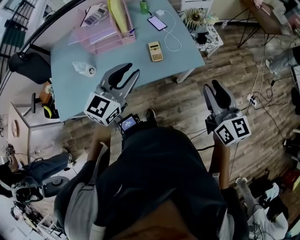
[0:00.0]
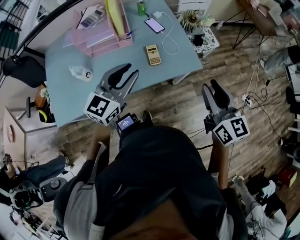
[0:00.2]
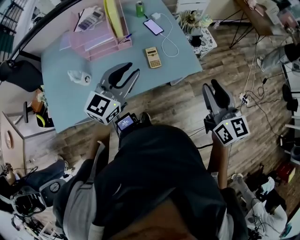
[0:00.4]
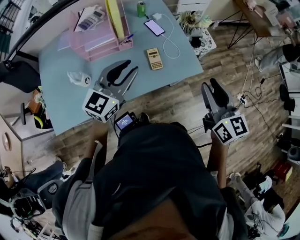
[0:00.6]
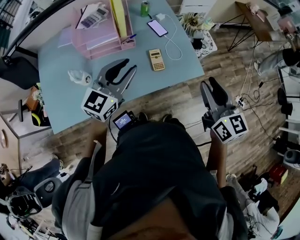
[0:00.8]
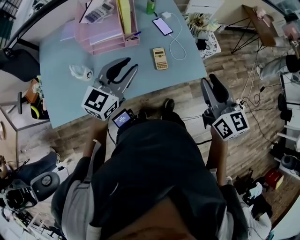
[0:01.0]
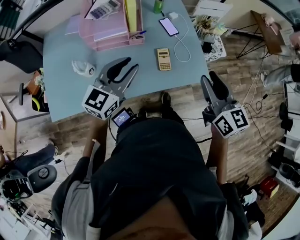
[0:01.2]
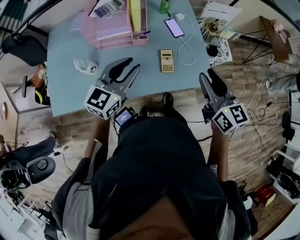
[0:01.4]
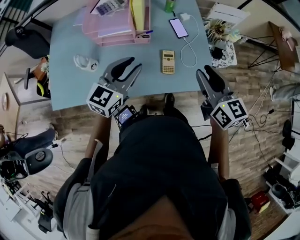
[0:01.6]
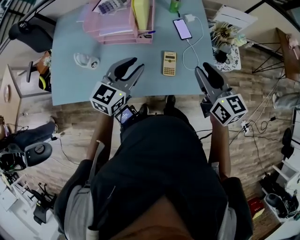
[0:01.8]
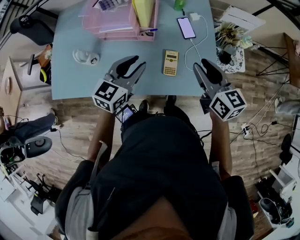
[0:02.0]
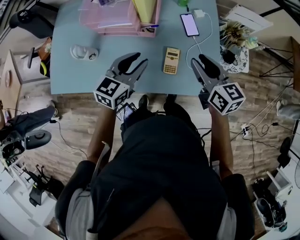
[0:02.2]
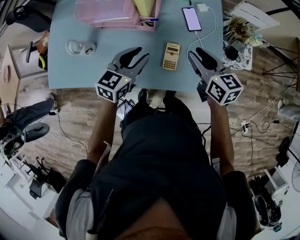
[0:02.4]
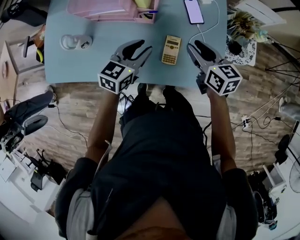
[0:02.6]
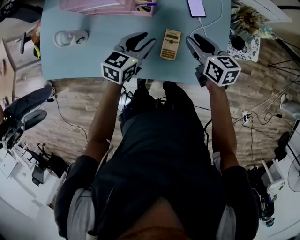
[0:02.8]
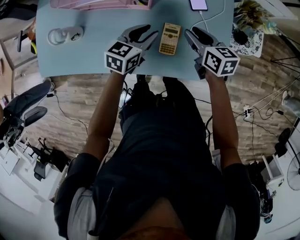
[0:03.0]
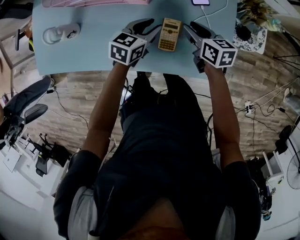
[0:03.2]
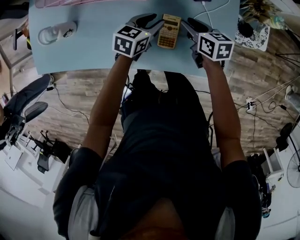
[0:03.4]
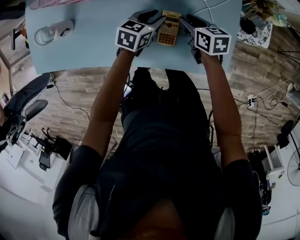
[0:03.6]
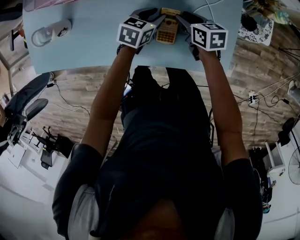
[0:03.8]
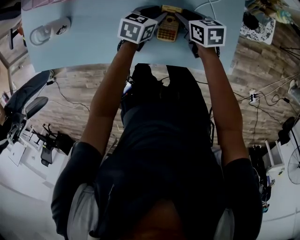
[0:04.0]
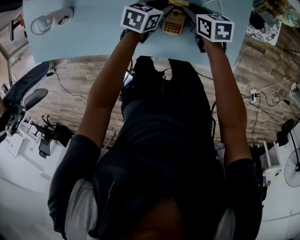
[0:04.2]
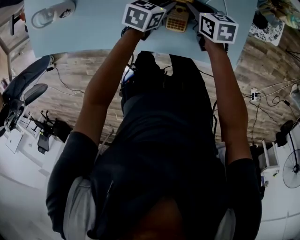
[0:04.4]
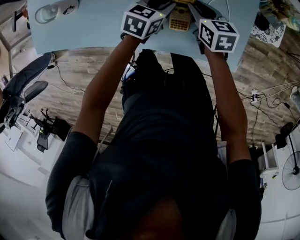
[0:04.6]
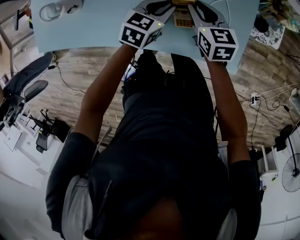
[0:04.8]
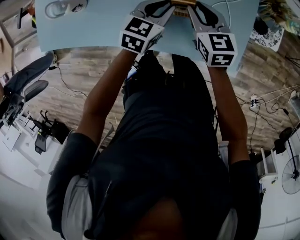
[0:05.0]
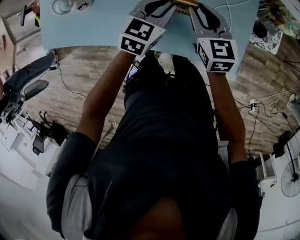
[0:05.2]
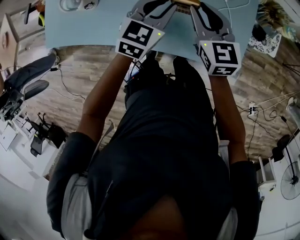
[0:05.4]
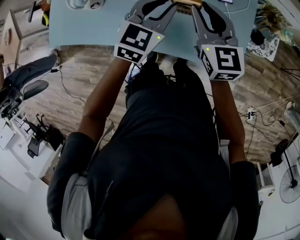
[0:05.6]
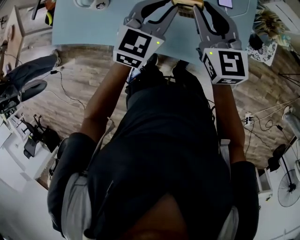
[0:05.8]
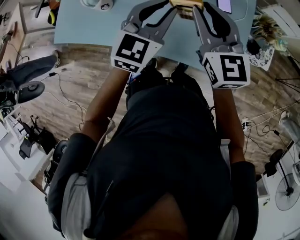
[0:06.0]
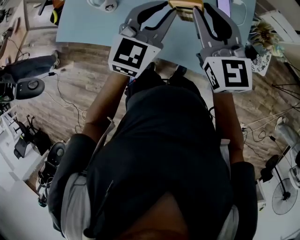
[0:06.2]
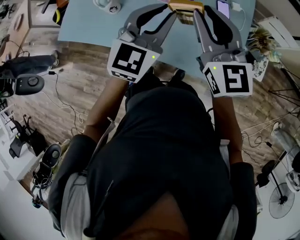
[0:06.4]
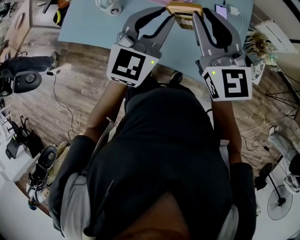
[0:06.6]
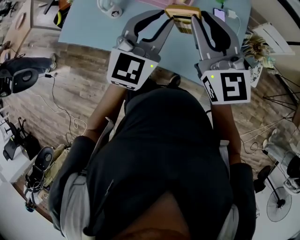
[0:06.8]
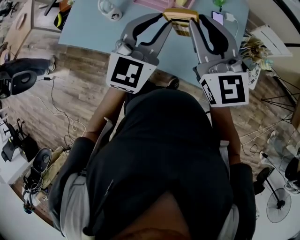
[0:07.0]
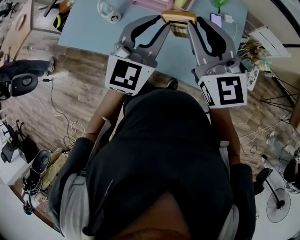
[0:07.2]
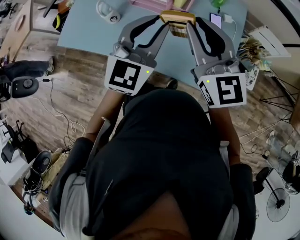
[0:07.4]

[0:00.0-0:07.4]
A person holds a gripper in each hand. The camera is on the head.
0:00.0 to 0:01.4: The two grippers go roughly 15 cm forward and to the left.
0:01.4 to 0:03.0: Both grippers travel together downward and forward, roughly 30 cm. The right gripper changes its angle by about 30 degrees. Meanwhile the left gripper swivels roughly 30 degrees.
0:03.0 to 0:04.4: Both grippers move downward, approximately 10 cm.
0:04.4 to 0:06.0: Both grippers travel together upward, roughly 35 cm. The right gripper tips its fingers upward by some 40 degrees. The left gripper angles its fingers upward, by some 30 degrees.
0:06.0 to 0:07.4: Both grippers travel together upward, about 10 cm.

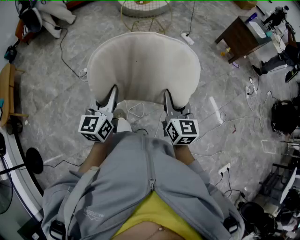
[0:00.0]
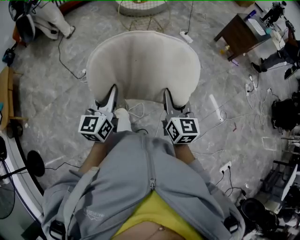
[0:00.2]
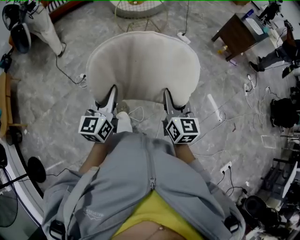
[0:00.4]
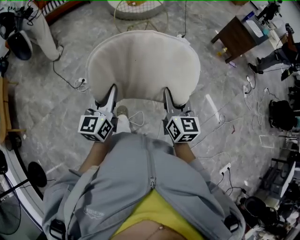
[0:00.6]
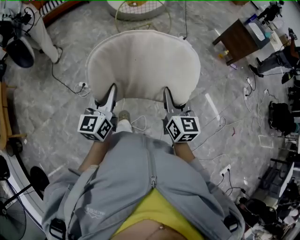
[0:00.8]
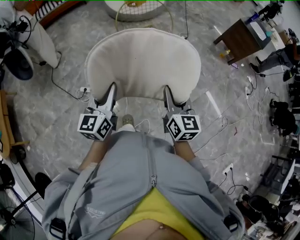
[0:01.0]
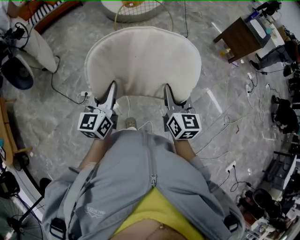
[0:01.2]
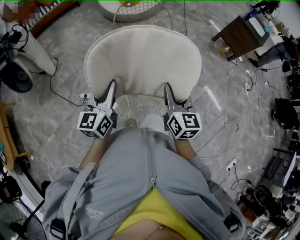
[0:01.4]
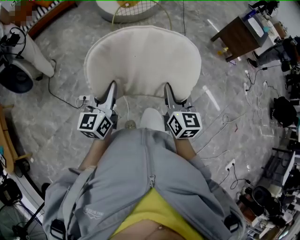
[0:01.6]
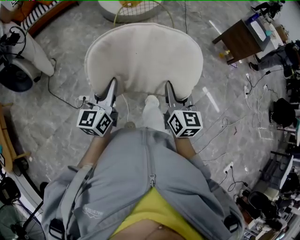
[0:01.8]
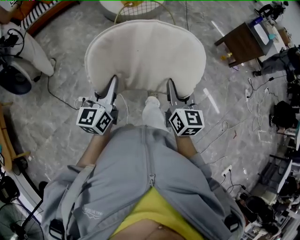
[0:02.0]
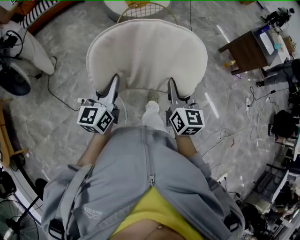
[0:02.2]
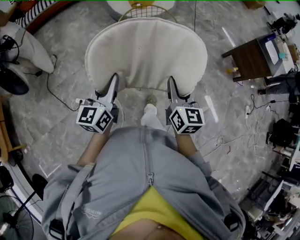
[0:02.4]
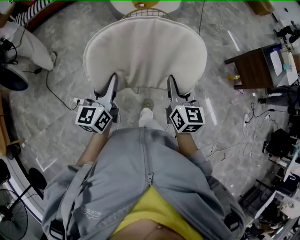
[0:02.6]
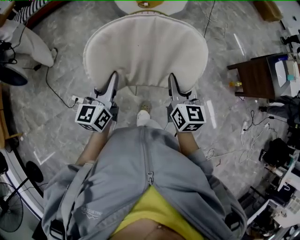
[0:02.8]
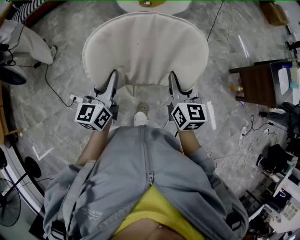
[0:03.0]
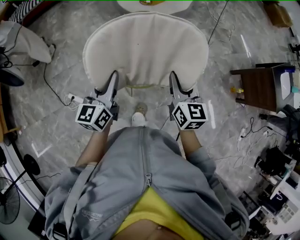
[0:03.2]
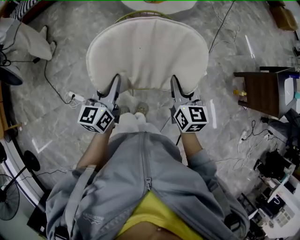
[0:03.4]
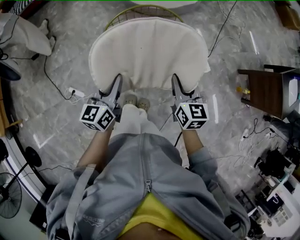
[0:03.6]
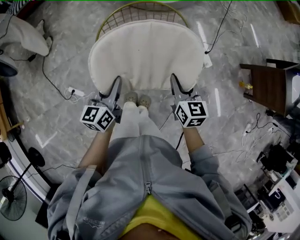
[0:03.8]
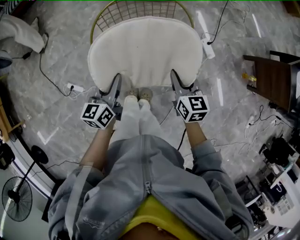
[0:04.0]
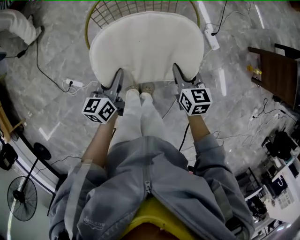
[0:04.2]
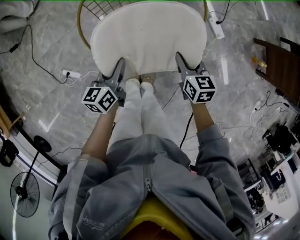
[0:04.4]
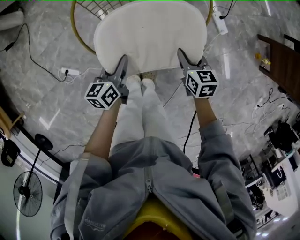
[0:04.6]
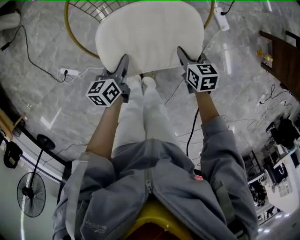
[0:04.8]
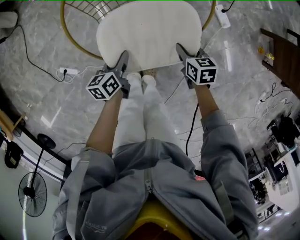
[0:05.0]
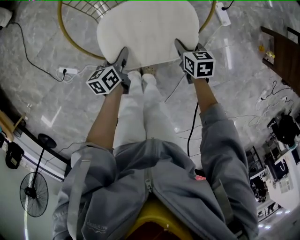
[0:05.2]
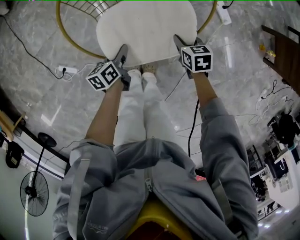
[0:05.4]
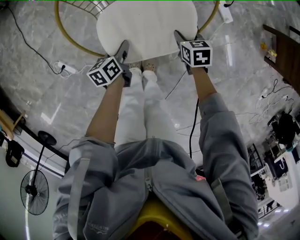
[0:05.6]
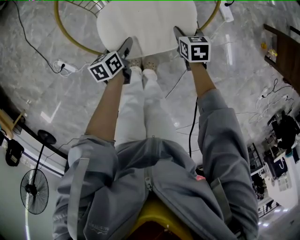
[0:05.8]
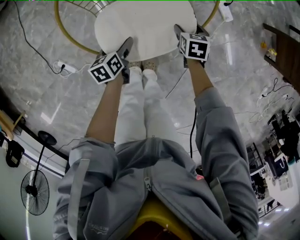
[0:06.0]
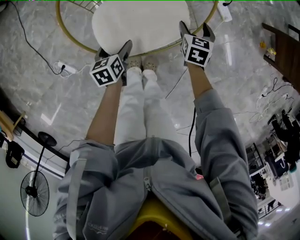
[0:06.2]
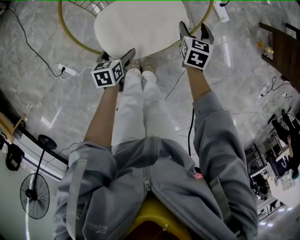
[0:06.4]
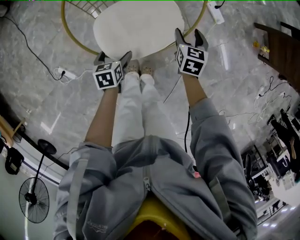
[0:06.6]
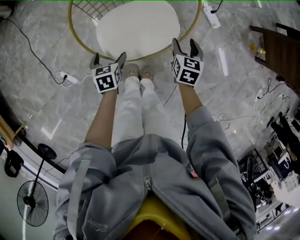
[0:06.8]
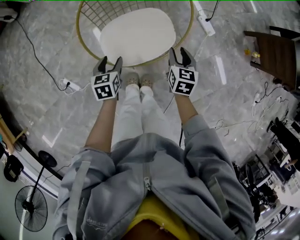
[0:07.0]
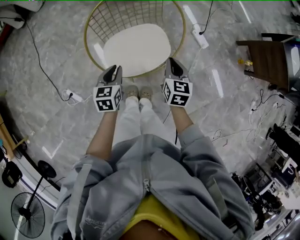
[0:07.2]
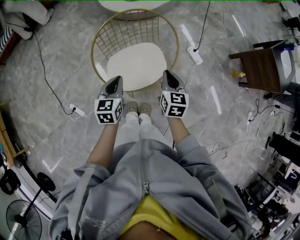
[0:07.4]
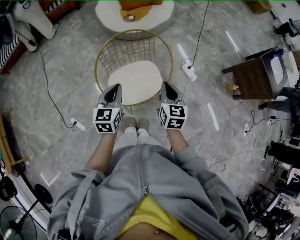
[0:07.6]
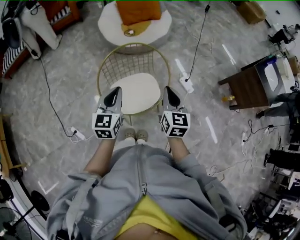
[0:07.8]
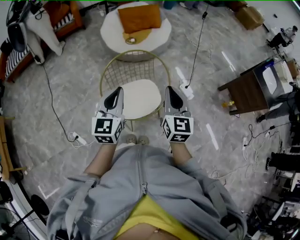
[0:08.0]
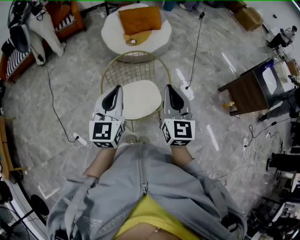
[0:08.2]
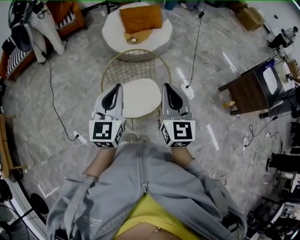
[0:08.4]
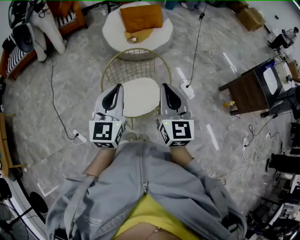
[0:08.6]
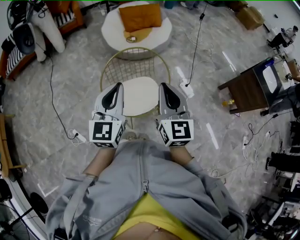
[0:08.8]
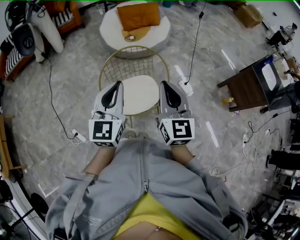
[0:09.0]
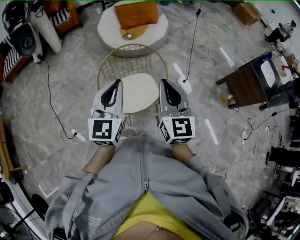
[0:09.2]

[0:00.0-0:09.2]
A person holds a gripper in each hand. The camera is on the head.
0:00.0 to 0:01.6: Both grippers travel together forward and to the left, approximately 40 cm.
0:01.6 to 0:03.0: The two grippers travel together, forward, roughly 50 cm.
0:03.0 to 0:04.6: Both grippers move downward, approximately 40 cm. The right gripper changes its angle by roughly 30 degrees, while the left gripper rotates roughly 30 degrees.
0:04.6 to 0:06.2: The right gripper travels downward, forward and to the right by approximately 15 cm, swivels about 30 degrees, and opens its fingers. The left gripper shifts some 10 cm downward, rotates some 20 degrees, and opens.
0:06.2 to 0:07.6: Both grippers move upward, about 40 cm. The right gripper swivels about 30 degrees, and closes its fingers, while the left gripper tips its fingers upward by about 30 degrees, and closes its fingers.
0:07.6 to 0:09.2: Both grippers travel together upward, about 25 cm. The right gripper swivels approximately 30 degrees, while the left gripper changes its angle by approximately 20 degrees.

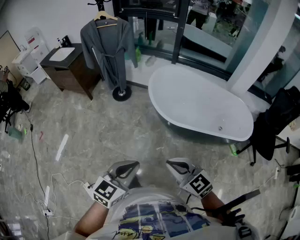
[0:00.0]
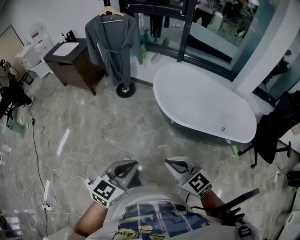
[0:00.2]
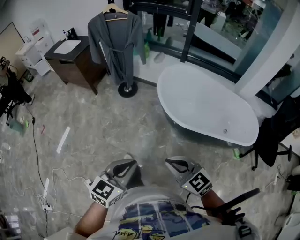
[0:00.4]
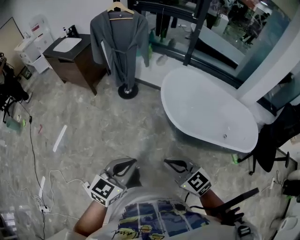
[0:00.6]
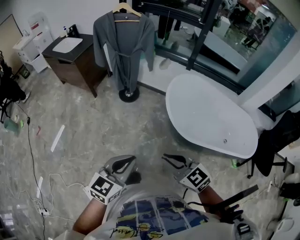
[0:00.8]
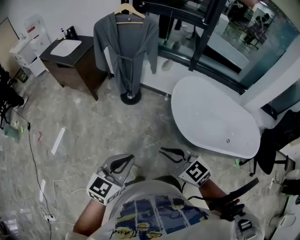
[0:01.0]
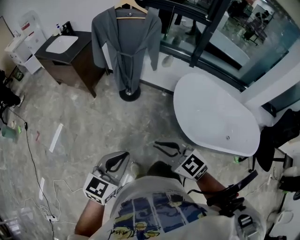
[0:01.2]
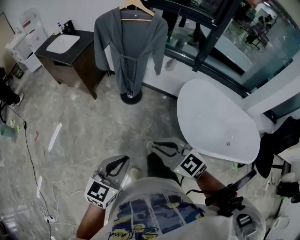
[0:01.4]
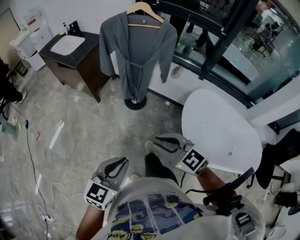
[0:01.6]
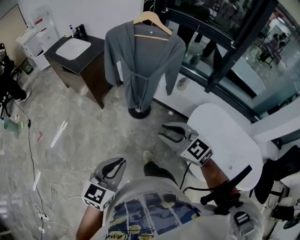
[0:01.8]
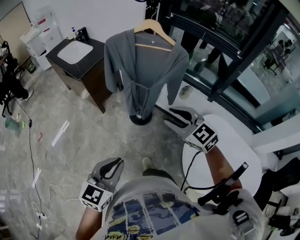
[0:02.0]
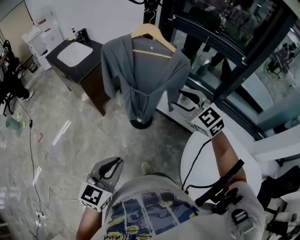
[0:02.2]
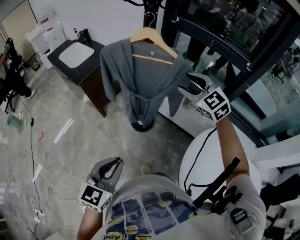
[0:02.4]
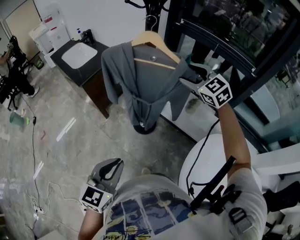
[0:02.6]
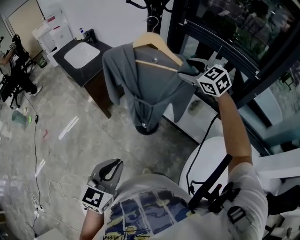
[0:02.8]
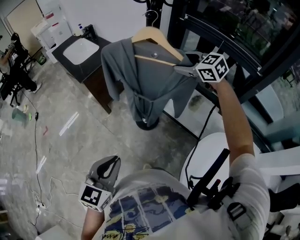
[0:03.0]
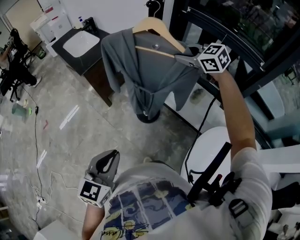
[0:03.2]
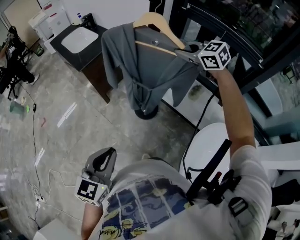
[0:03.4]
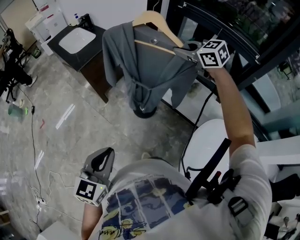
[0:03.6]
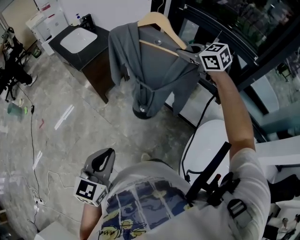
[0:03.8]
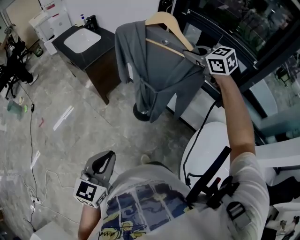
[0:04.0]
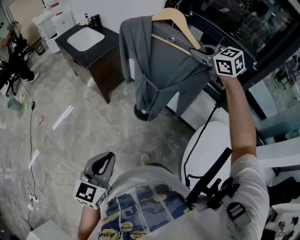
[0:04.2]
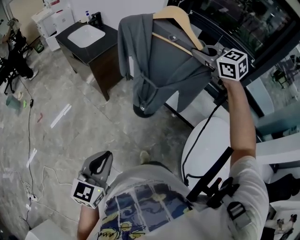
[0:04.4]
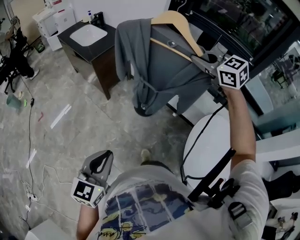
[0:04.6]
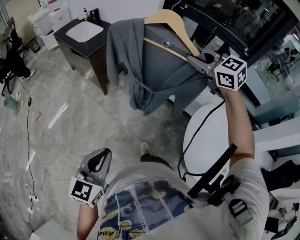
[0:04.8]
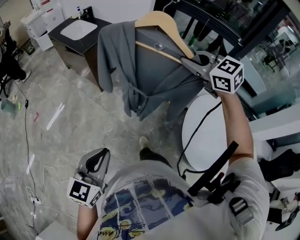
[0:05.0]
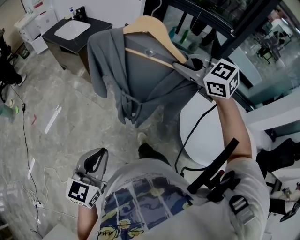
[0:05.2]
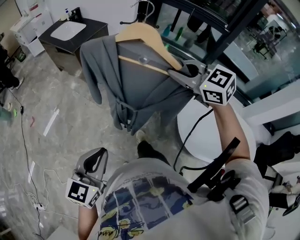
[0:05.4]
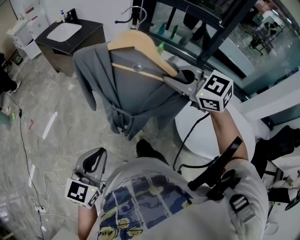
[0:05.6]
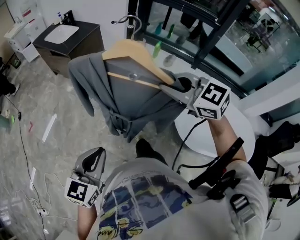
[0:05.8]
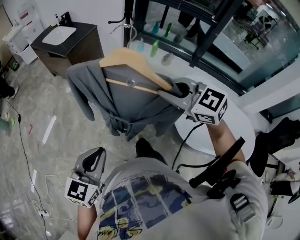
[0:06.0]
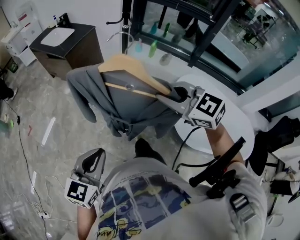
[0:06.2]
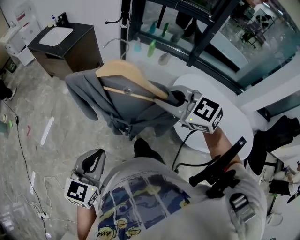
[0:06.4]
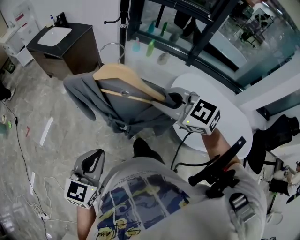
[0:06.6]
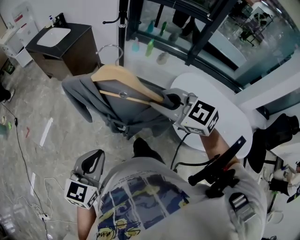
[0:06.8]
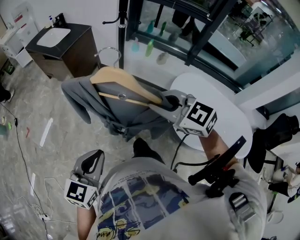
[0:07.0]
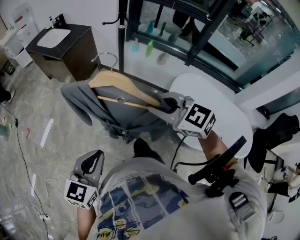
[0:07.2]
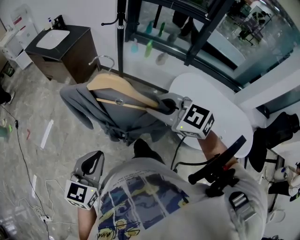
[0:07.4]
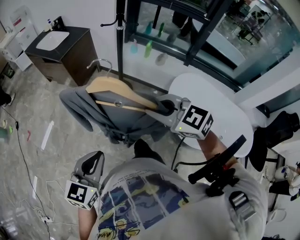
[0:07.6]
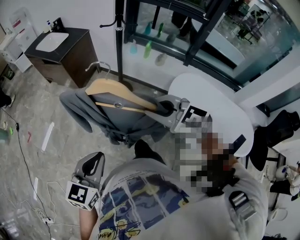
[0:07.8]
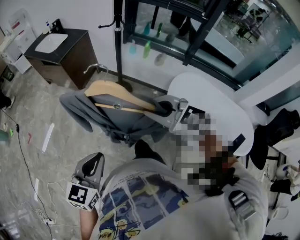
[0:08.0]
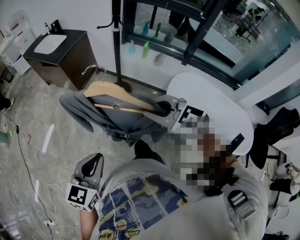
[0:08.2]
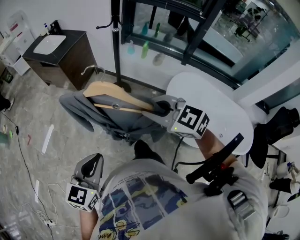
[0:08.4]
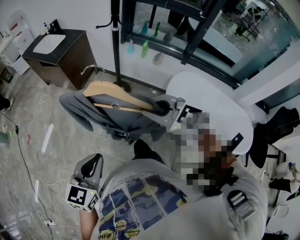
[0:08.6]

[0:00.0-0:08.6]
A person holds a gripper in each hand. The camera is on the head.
0:00.0 to 0:01.4: Both grippers move forward and to the left, about 40 cm.
0:01.4 to 0:02.8: The right gripper is displaced forward by some 60 cm, and opens. The left gripper goes roughly 30 cm forward, and turns by about 20 degrees.
0:02.8 to 0:04.4: The right gripper is displaced backward, upward and to the left by about 15 cm, and closes. The left gripper shifts some 15 cm to the left and backward.
0:04.4 to 0:05.8: The right gripper travels backward by roughly 35 cm, while the left gripper is displaced backward by some 15 cm.
0:05.8 to 0:07.2: The right gripper ends up approximately 5 cm from where it was.
0:07.2 to 0:08.6: The two grippers keep their place.
